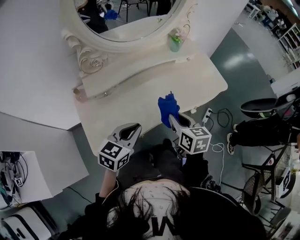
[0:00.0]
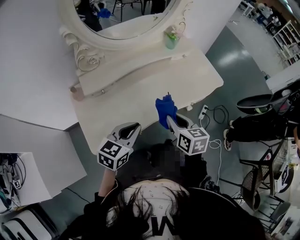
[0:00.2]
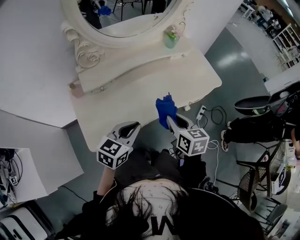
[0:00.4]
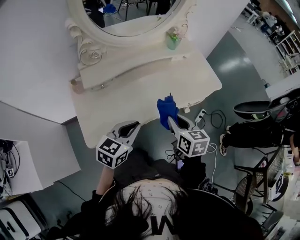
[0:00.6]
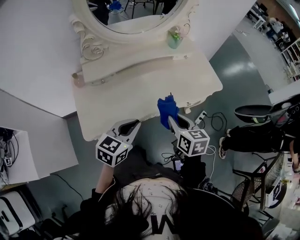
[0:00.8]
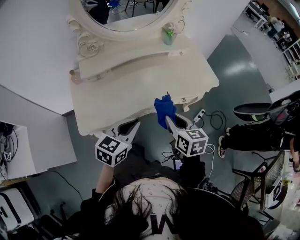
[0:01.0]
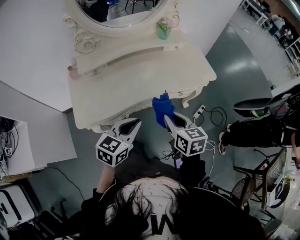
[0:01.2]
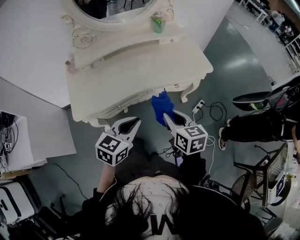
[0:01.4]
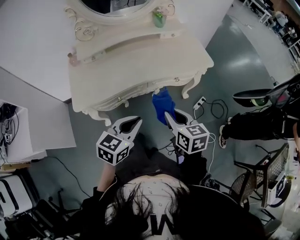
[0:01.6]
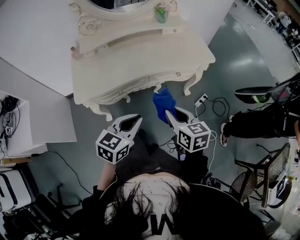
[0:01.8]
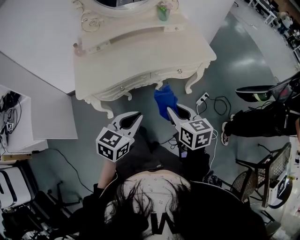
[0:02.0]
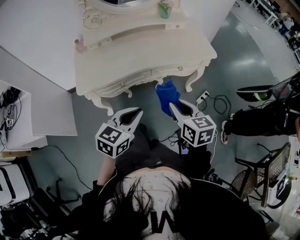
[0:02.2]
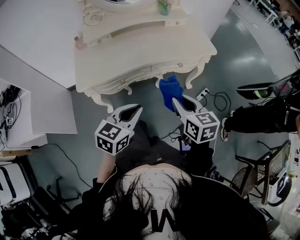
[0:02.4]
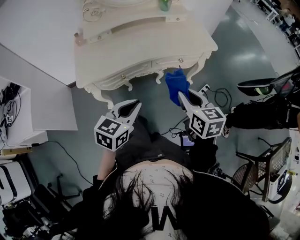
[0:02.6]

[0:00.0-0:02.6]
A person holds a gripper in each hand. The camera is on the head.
0.0 to 1.2 s: The left gripper is displaced to the right and backward by some 15 cm. The right gripper is displaced backward and to the right by approximately 15 cm.
1.2 to 2.6 s: The left gripper travels backward by roughly 15 cm, while the right gripper shifts about 15 cm backward and to the right.

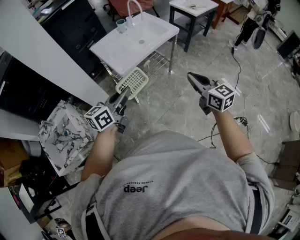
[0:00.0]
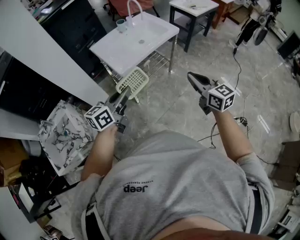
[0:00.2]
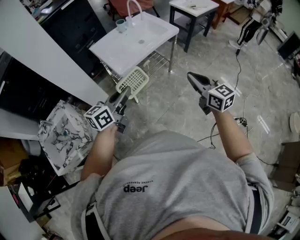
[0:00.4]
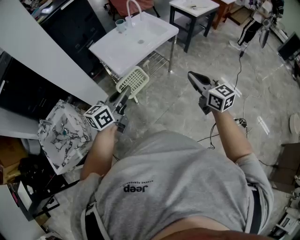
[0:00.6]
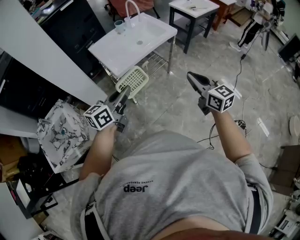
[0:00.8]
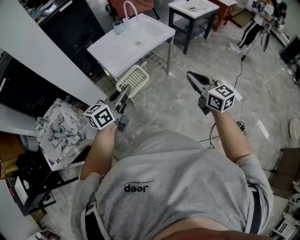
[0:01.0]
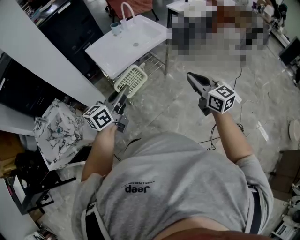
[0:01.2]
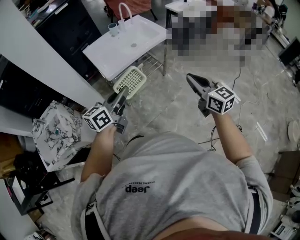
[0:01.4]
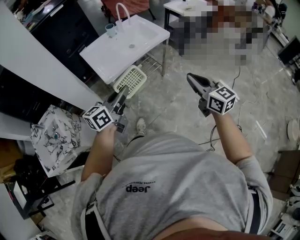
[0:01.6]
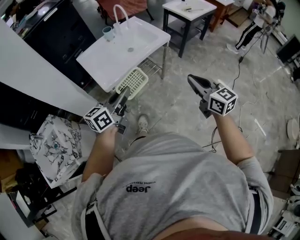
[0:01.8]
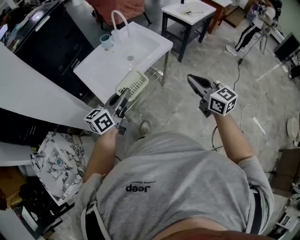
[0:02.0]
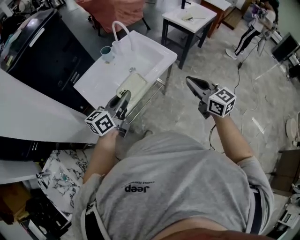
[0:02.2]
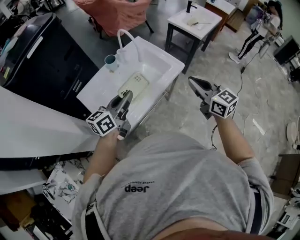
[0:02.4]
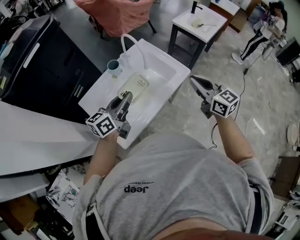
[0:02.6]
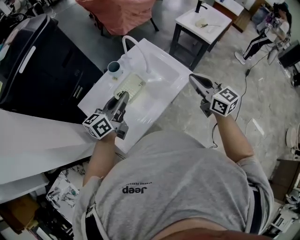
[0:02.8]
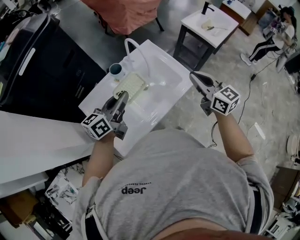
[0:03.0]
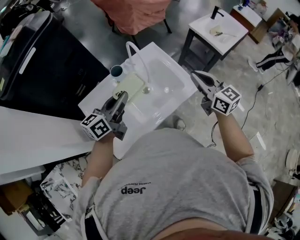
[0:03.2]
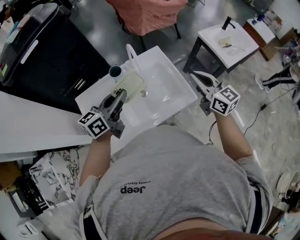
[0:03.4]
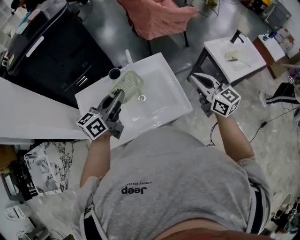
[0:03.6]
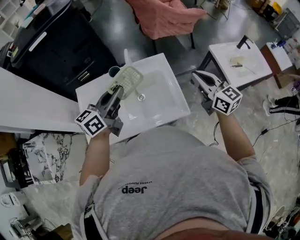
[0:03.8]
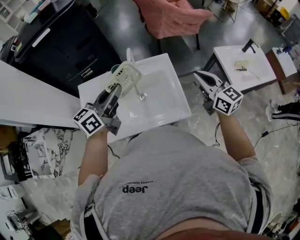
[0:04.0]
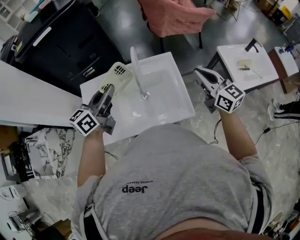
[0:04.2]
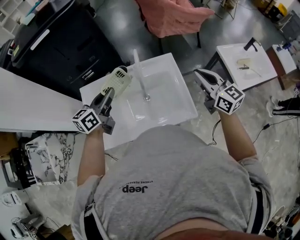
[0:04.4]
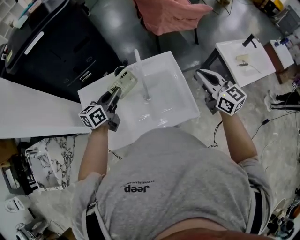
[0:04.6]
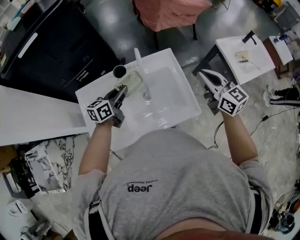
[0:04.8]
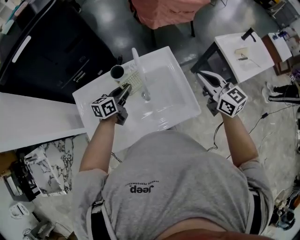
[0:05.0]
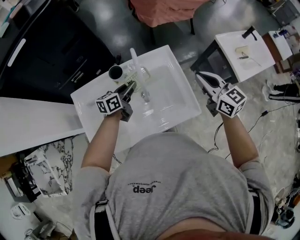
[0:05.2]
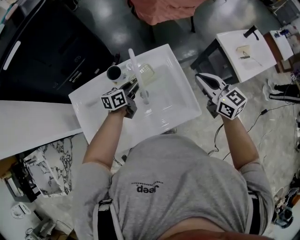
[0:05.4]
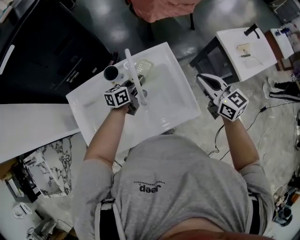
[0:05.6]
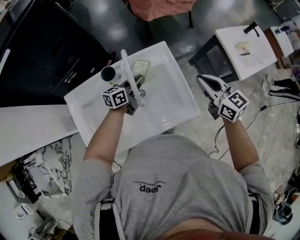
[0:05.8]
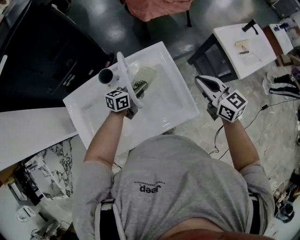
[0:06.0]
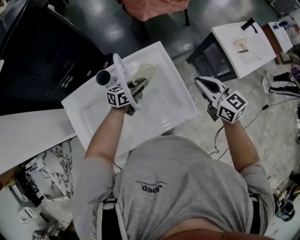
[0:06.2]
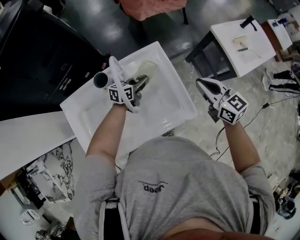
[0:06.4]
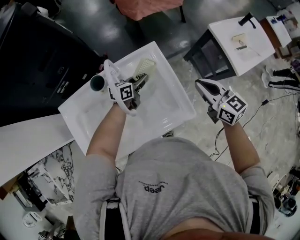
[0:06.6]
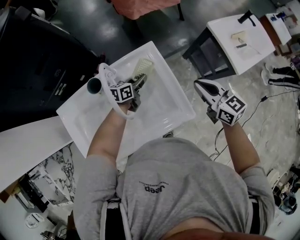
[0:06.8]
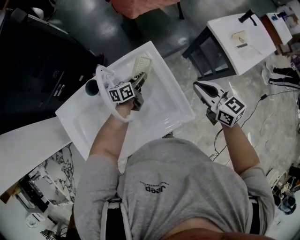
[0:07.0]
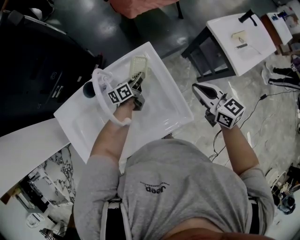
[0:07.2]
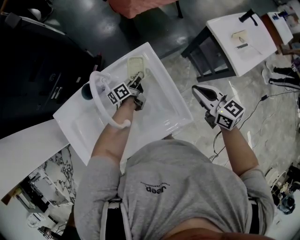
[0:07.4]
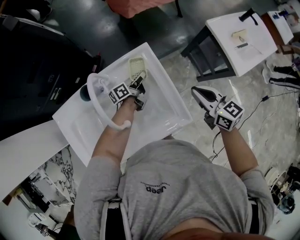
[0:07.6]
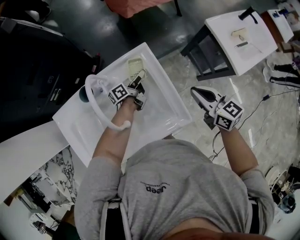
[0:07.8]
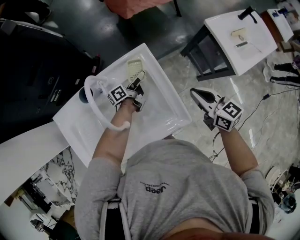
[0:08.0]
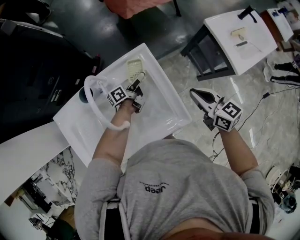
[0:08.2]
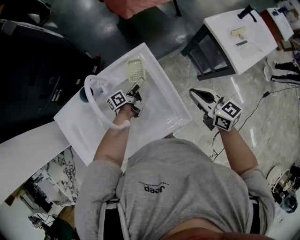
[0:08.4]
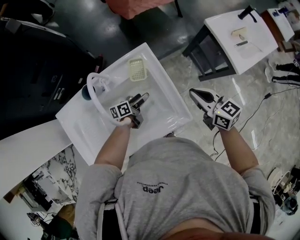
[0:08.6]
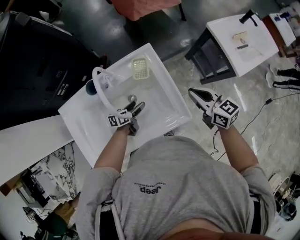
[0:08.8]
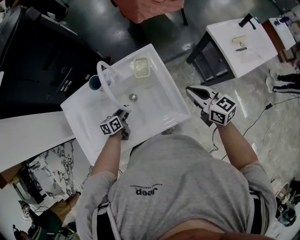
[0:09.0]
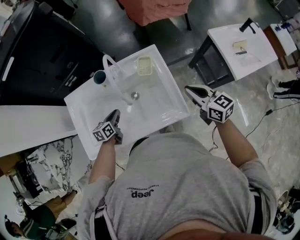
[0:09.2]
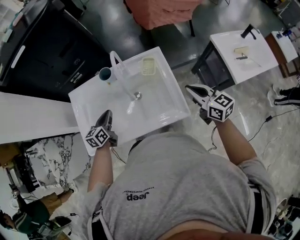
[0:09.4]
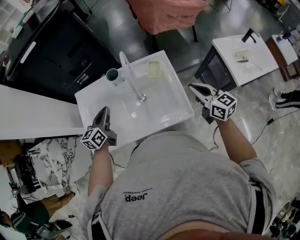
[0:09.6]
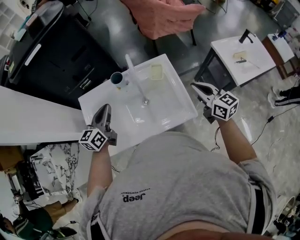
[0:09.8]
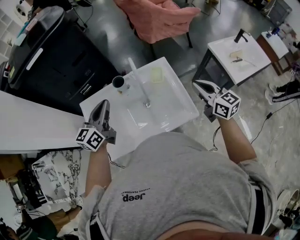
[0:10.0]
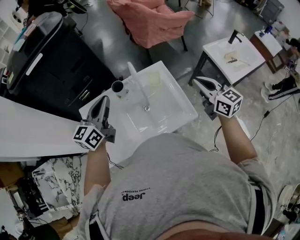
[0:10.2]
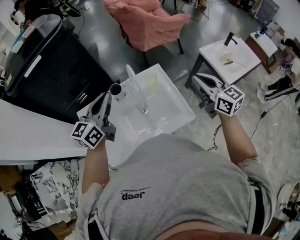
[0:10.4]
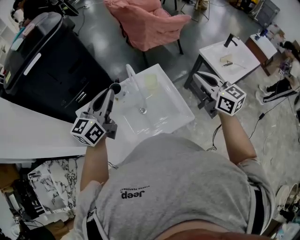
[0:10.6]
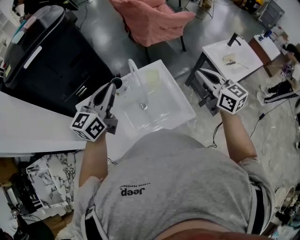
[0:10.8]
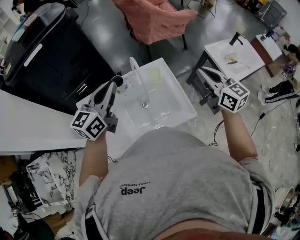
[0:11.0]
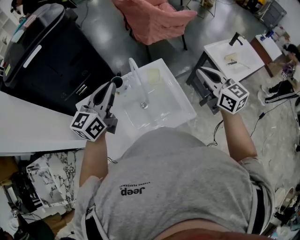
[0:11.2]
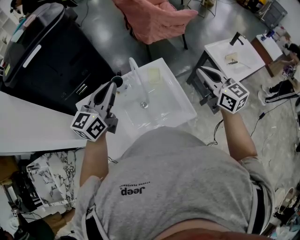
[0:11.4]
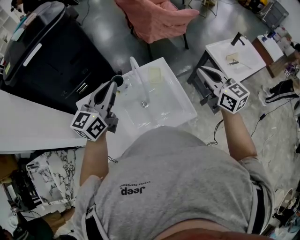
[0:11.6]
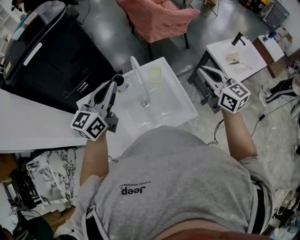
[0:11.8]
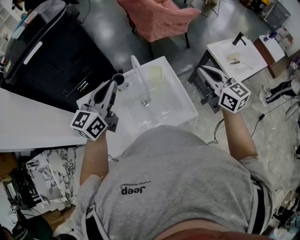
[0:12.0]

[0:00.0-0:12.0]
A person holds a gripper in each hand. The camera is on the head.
0.0 to 1.6 s: The right gripper heads to the right, covering approximately 10 cm, while the left gripper travels to the right and forward by some 10 cm.
1.6 to 3.0 s: The pair of grippers is taken forward, about 50 cm.
3.0 to 4.4 s: The right gripper shifts by some 20 cm, and turns by some 30 degrees. Meanwhile the left gripper turns by about 30 degrees.
4.4 to 6.0 s: The right gripper travels downward by some 10 cm; the left gripper heads downward, to the right and forward, covering roughly 30 cm, and rotates roughly 30 degrees.
6.0 to 7.6 s: The right gripper is displaced downward and to the right by approximately 10 cm. Meanwhile the left gripper travels forward, downward and to the right by about 15 cm, and swivels approximately 40 degrees.
7.6 to 9.0 s: The left gripper is displaced backward and to the left by some 25 cm, rotates approximately 30 degrees, and opens and closes again.
9.0 to 10.4 s: The left gripper heads upward, covering some 40 cm, and tips its fingers upward by some 40 degrees; the right gripper travels upward by roughly 15 cm, and changes its angle by approximately 20 degrees.
10.4 to 12.0 s: There are only small adjustments of the grippers.

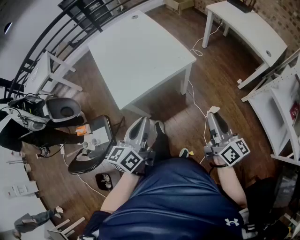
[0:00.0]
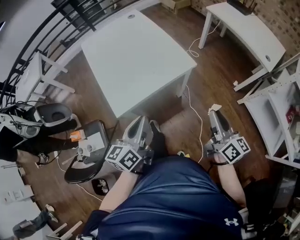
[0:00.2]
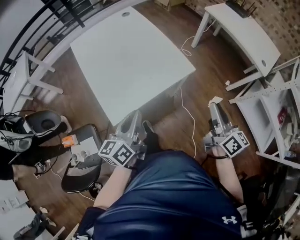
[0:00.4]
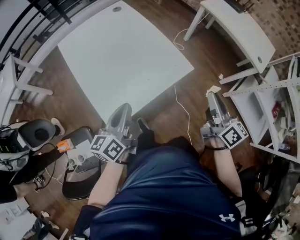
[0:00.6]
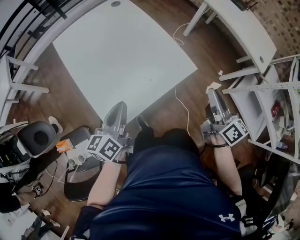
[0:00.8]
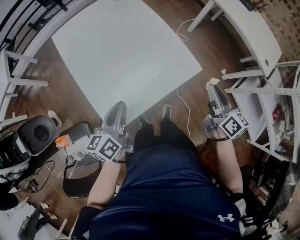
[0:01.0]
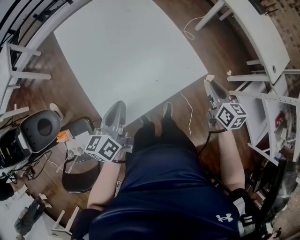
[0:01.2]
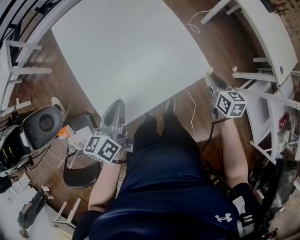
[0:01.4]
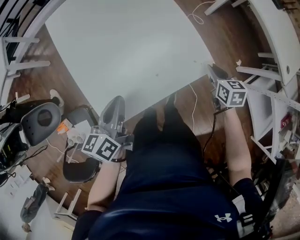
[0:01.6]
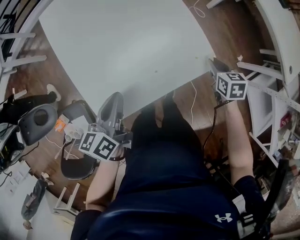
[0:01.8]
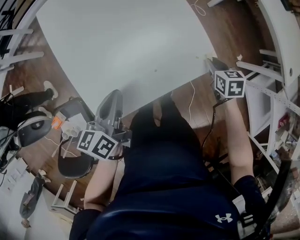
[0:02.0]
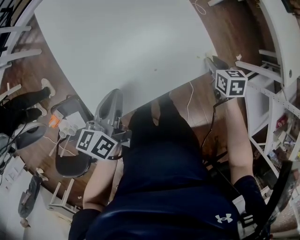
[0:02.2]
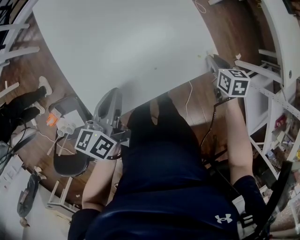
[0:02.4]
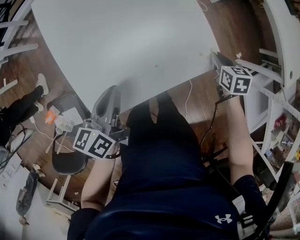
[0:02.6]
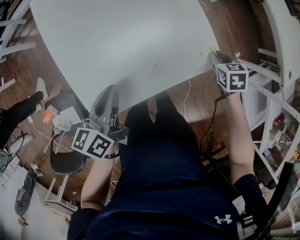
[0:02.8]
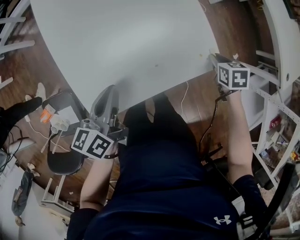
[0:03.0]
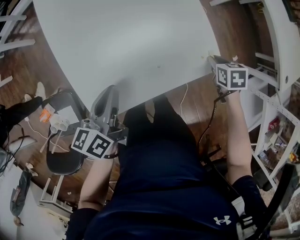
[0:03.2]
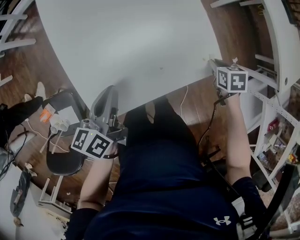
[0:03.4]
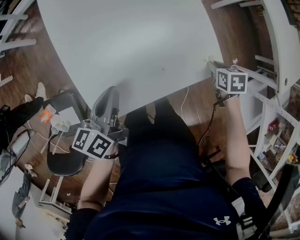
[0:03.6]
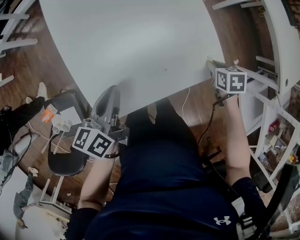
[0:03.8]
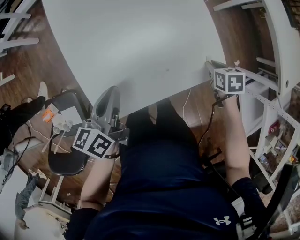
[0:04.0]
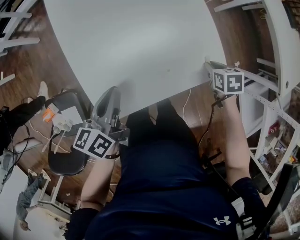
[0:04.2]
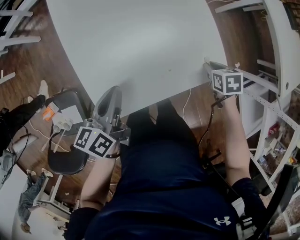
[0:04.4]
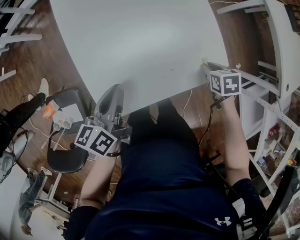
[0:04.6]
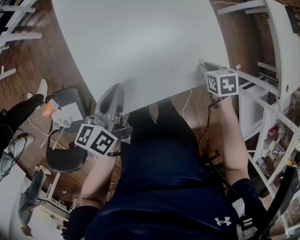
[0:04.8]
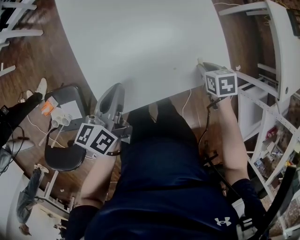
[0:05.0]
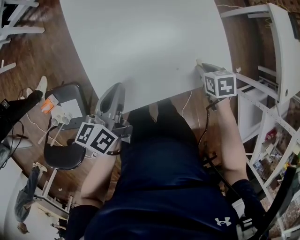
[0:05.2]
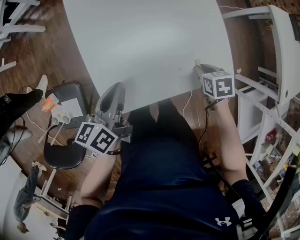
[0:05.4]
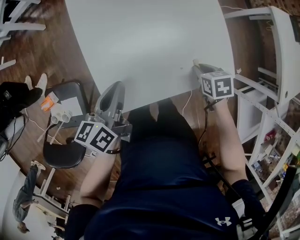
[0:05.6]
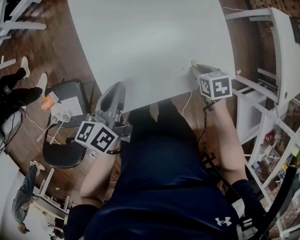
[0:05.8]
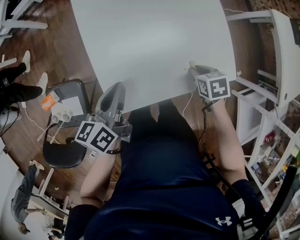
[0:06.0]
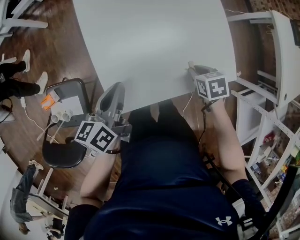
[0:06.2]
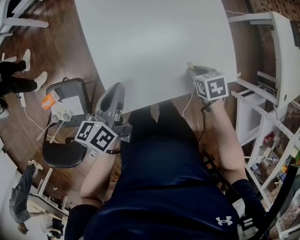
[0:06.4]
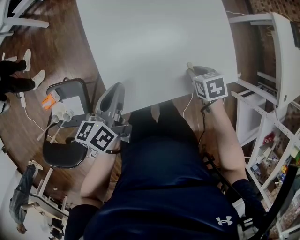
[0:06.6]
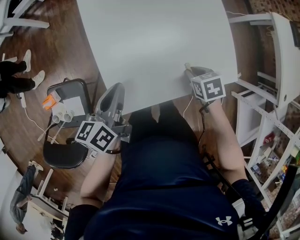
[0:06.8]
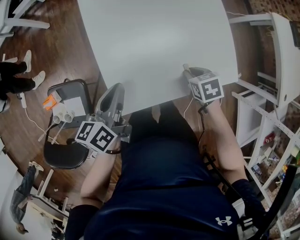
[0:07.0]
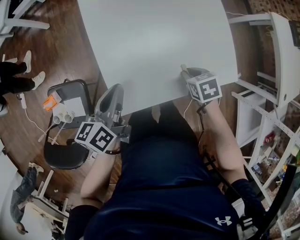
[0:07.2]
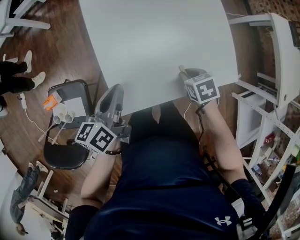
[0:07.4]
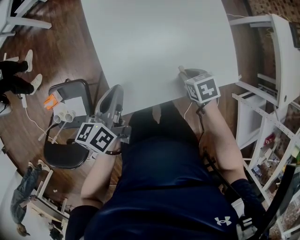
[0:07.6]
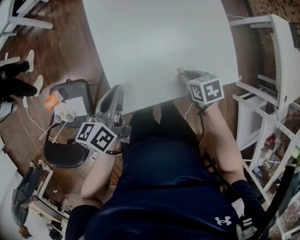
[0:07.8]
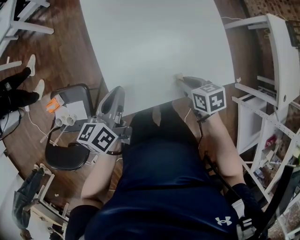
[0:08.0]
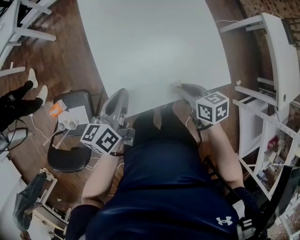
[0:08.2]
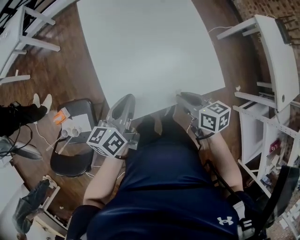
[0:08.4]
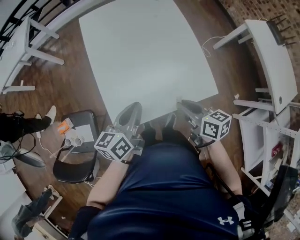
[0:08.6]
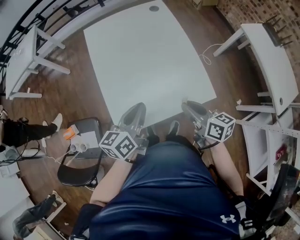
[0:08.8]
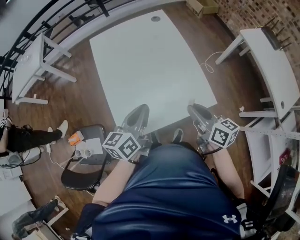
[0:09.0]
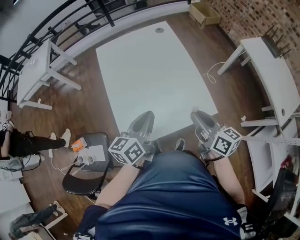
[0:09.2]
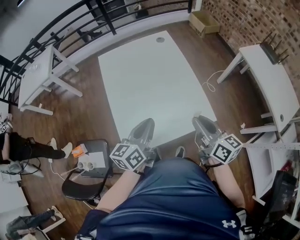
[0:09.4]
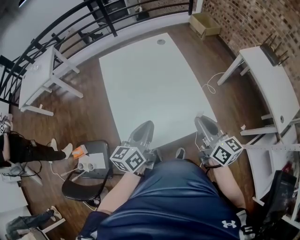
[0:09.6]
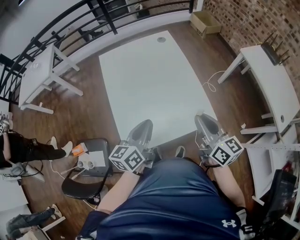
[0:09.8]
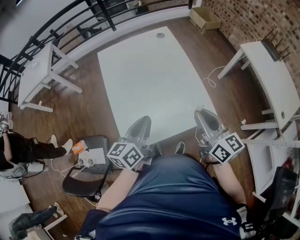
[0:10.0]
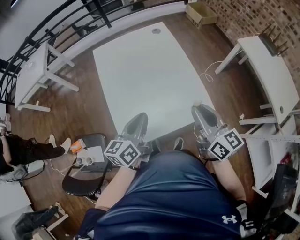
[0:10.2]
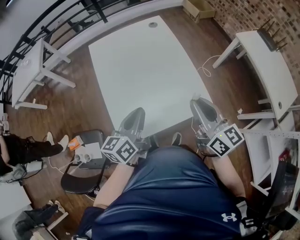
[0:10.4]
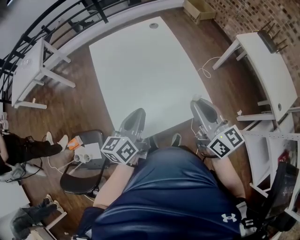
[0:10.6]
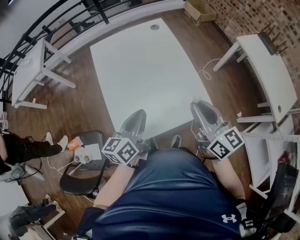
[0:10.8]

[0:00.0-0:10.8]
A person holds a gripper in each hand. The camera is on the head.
0.0 to 1.6 s: The right gripper shifts about 40 cm forward and downward, and angles its fingers downward, by roughly 50 degrees. Meanwhile the left gripper heads forward, to the left and downward, covering some 30 cm.
1.6 to 3.0 s: The right gripper ends up some 5 cm from where it was, and rotates some 20 degrees.
3.0 to 4.6 s: The right gripper shifts by about 10 cm.
4.6 to 6.2 s: The right gripper moves some 10 cm. The left gripper changes place by approximately 5 cm.
6.2 to 7.8 s: The right gripper shifts by roughly 5 cm.
7.8 to 9.2 s: The left gripper moves to the right and upward, about 20 cm, and changes its angle by some 20 degrees. The right gripper moves upward, approximately 25 cm, and angles its fingers upward, by about 50 degrees.
9.2 to 10.8 s: The right gripper moves upward, approximately 10 cm.
